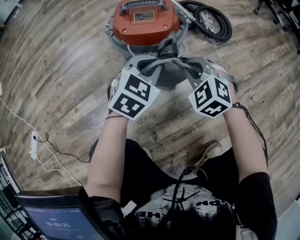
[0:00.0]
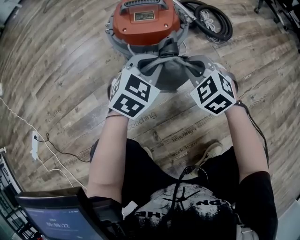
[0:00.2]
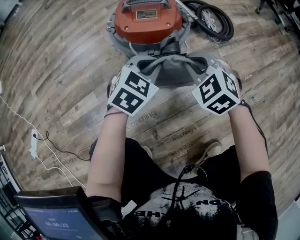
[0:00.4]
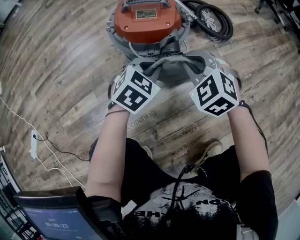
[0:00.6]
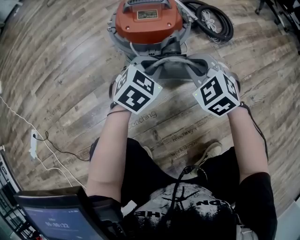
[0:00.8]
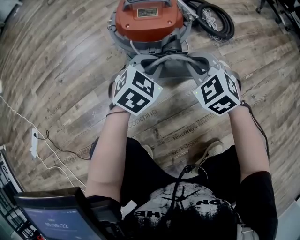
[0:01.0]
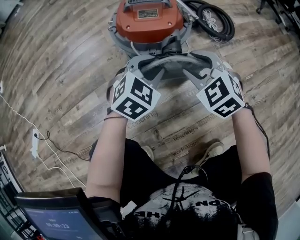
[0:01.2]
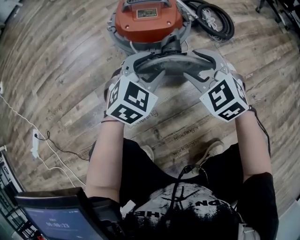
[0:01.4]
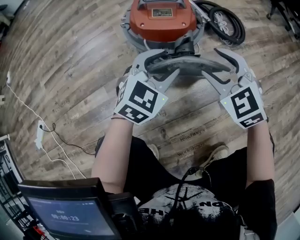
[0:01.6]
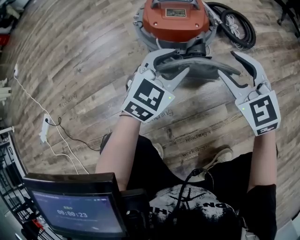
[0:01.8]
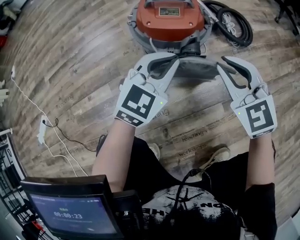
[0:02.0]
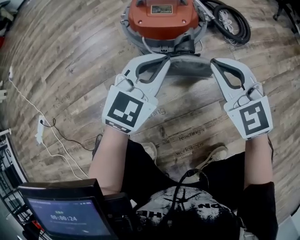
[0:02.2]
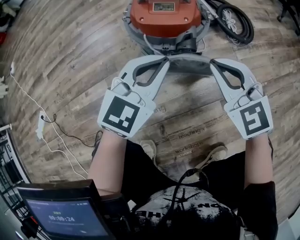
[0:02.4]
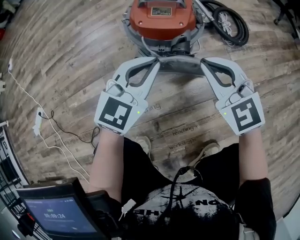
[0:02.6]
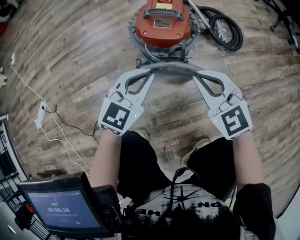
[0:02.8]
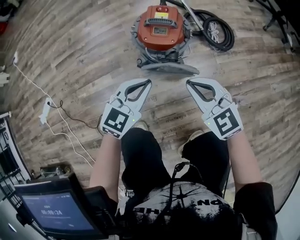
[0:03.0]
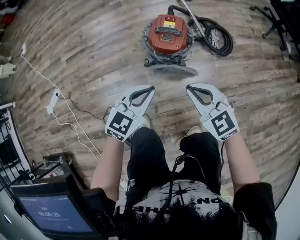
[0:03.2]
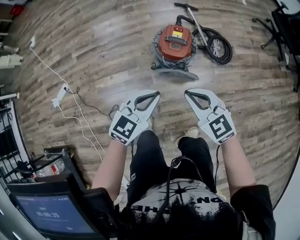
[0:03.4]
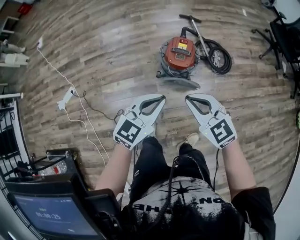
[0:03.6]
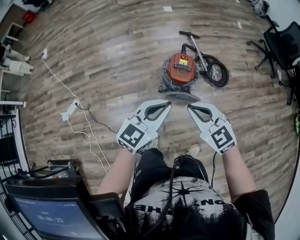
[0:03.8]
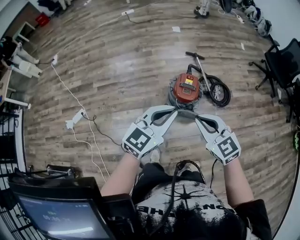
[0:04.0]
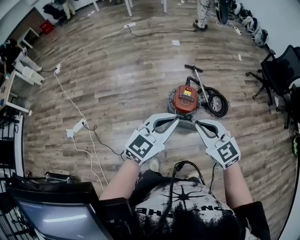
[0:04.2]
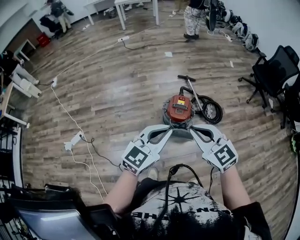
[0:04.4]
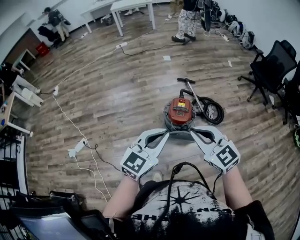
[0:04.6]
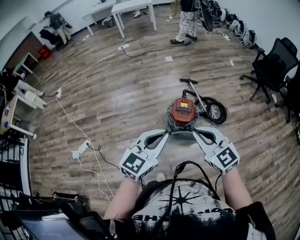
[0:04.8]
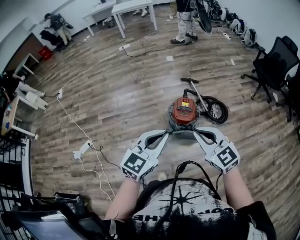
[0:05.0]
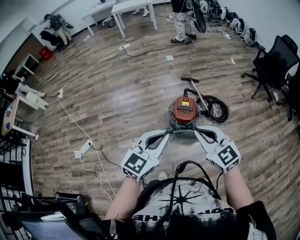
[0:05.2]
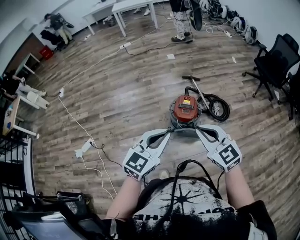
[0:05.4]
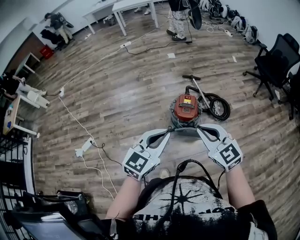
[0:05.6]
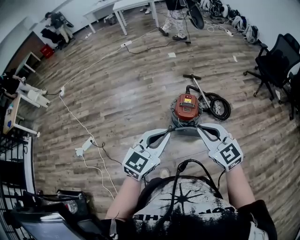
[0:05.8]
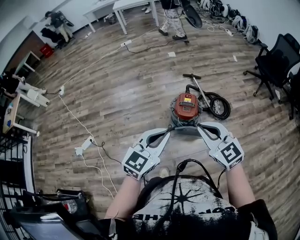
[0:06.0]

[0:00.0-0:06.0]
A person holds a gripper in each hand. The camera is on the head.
0:00.0 to 0:01.6: The right gripper heads upward, covering approximately 5 cm, and opens. Meanwhile the left gripper opens up.
0:01.6 to 0:03.0: Both grippers move upward and backward, roughly 20 cm. The right gripper swivels approximately 20 degrees, and closes its fingers, while the left gripper closes.
0:03.0 to 0:04.4: The grippers both shift upward by about 50 cm.
0:04.4 to 0:06.0: The grippers move only a little.

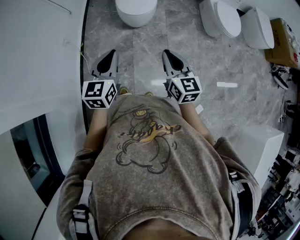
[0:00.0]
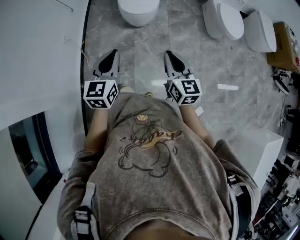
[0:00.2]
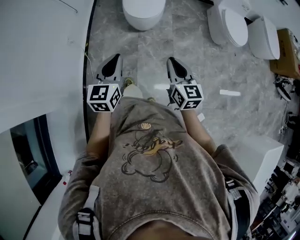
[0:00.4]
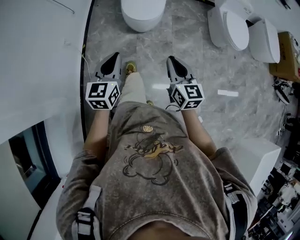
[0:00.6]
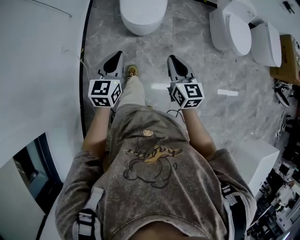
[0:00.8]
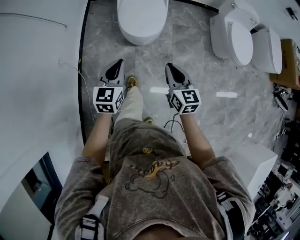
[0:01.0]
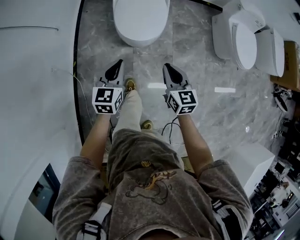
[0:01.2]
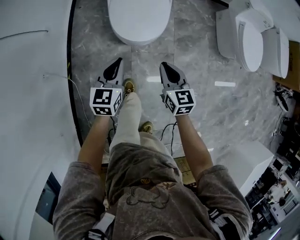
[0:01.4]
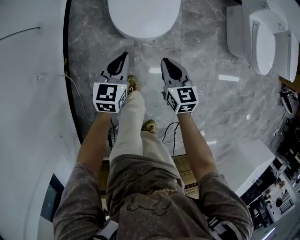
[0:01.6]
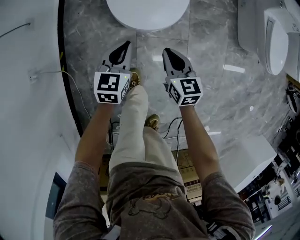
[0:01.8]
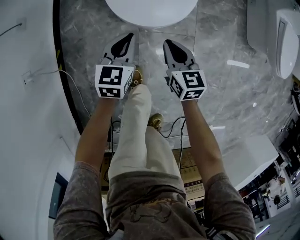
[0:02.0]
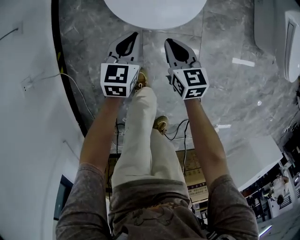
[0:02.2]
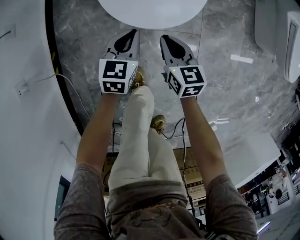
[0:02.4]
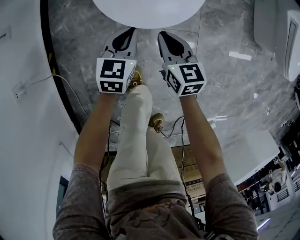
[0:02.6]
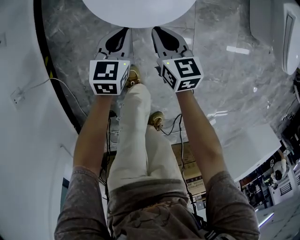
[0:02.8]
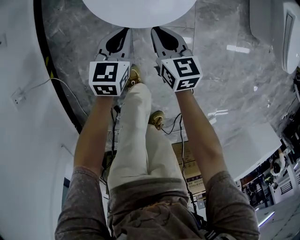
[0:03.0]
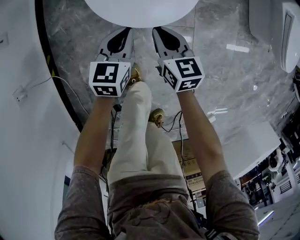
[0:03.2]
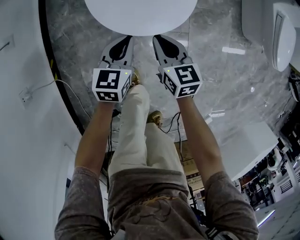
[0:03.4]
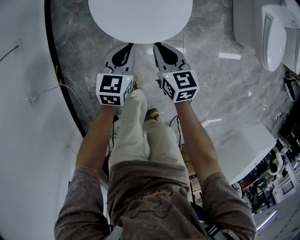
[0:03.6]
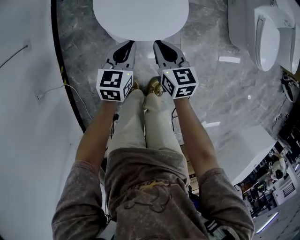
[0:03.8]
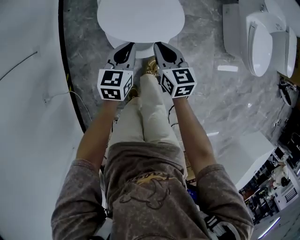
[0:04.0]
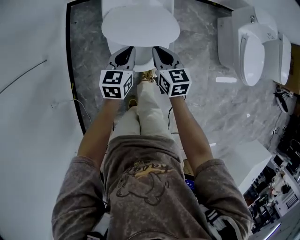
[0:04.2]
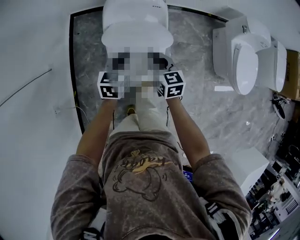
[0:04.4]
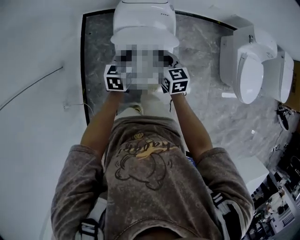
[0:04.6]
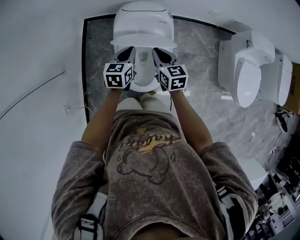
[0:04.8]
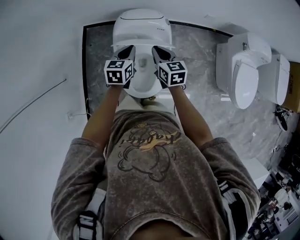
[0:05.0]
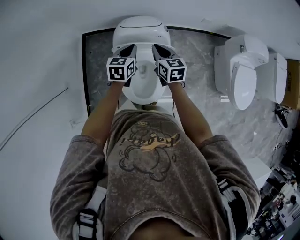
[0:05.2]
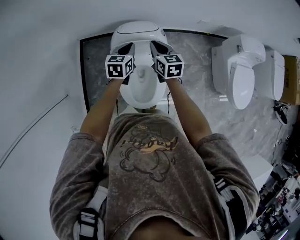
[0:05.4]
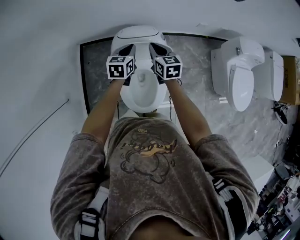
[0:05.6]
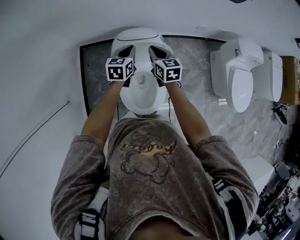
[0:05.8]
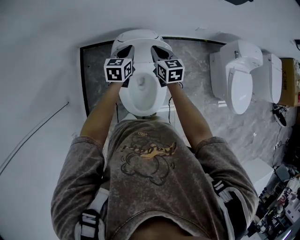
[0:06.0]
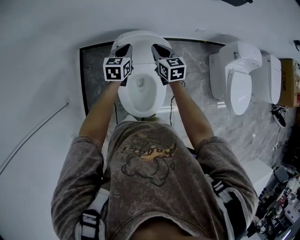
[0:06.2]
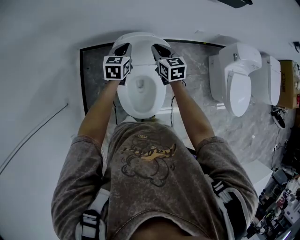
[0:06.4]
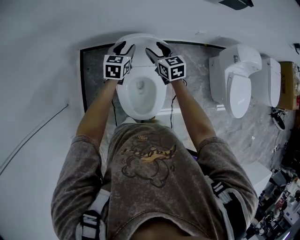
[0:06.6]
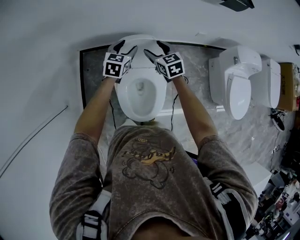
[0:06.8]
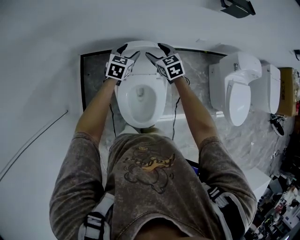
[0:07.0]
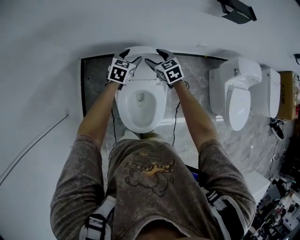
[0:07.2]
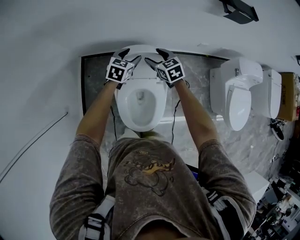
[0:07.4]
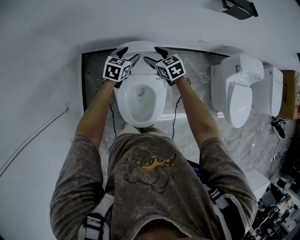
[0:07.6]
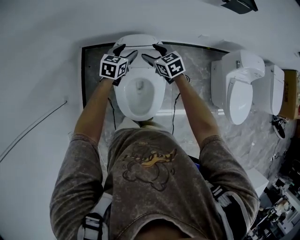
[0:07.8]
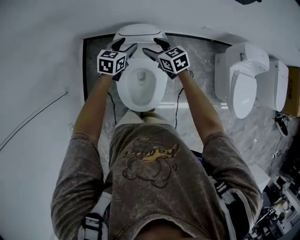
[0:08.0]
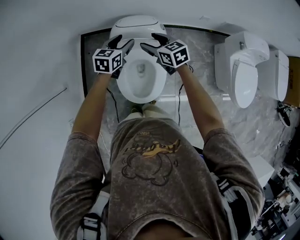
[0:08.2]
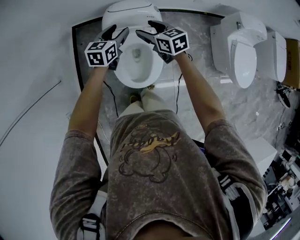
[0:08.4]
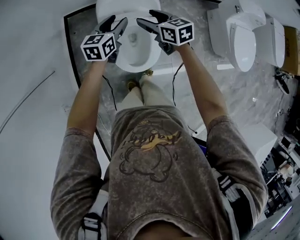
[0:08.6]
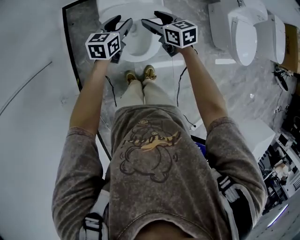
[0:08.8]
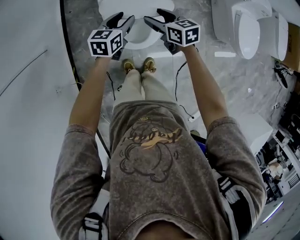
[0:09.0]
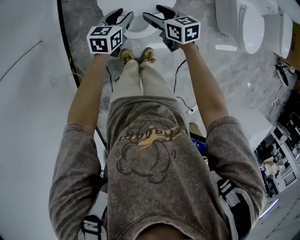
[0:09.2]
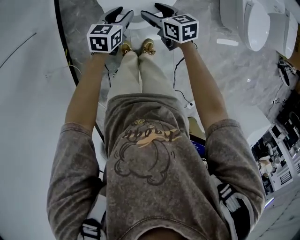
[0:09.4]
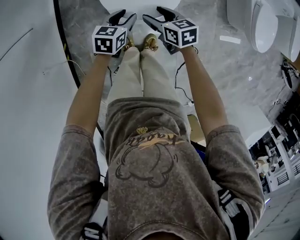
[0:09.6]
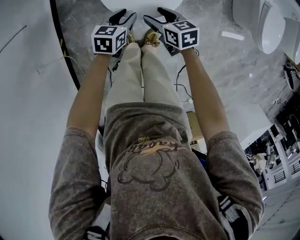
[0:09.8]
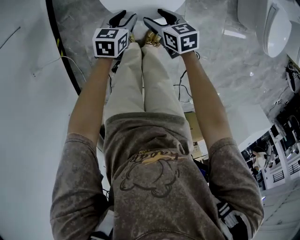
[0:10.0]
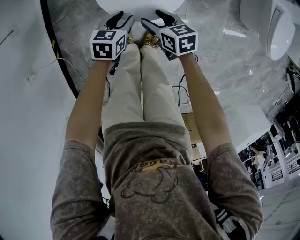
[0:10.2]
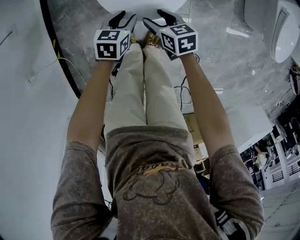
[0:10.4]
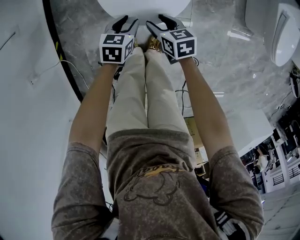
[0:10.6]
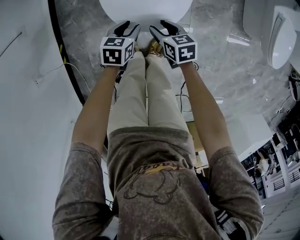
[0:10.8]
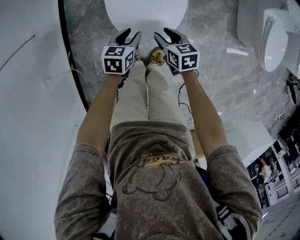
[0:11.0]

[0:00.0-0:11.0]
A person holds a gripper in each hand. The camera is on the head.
0:00.0 to 0:01.6: Both grippers are carried forward, approximately 40 cm. The grippers both shift downward by roughly 35 cm.
0:01.6 to 0:03.2: The right gripper goes about 20 cm downward and forward. Meanwhile the left gripper goes approximately 20 cm downward.
0:03.2 to 0:04.8: The two grippers go approximately 50 cm upward and forward.
0:04.8 to 0:06.2: The grippers both shift forward by roughly 15 cm.
0:06.2 to 0:07.8: The left gripper opens. The right gripper rotates approximately 20 degrees, and opens its fingers.
0:07.8 to 0:09.4: Both grippers travel together backward and downward, roughly 40 cm. The right gripper rotates approximately 20 degrees.
0:09.4 to 0:11.0: The two grippers go some 15 cm downward.

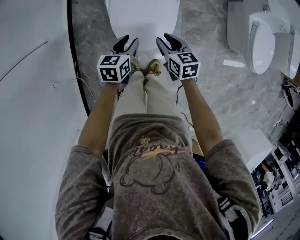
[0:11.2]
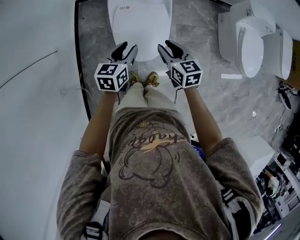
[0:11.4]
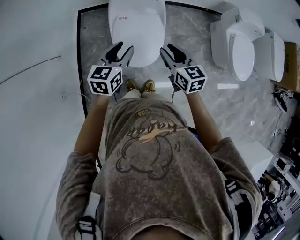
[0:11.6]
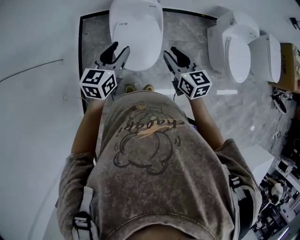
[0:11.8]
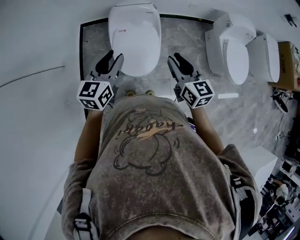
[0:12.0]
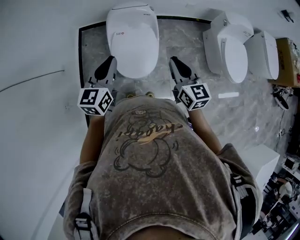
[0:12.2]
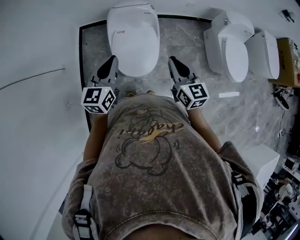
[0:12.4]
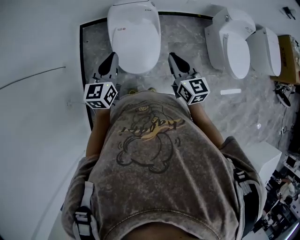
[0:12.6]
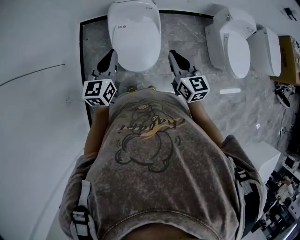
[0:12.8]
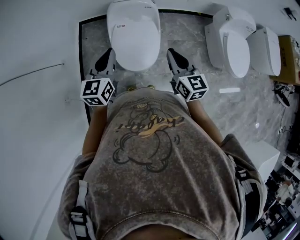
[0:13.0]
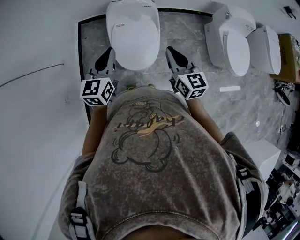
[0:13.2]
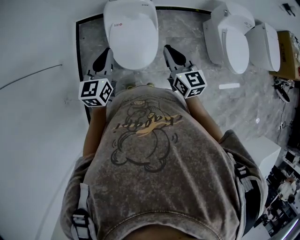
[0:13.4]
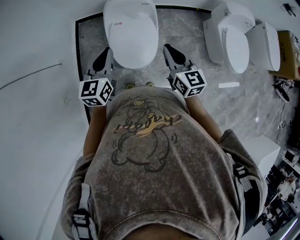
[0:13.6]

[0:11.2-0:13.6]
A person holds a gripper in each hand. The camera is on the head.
0:11.2 to 0:12.4: Both grippers move upward, approximately 30 cm. The left gripper changes its angle by roughly 30 degrees, and closes up, while the right gripper rotates some 30 degrees, and closes its fingers.
0:12.4 to 0:13.6: The grippers move only a little.

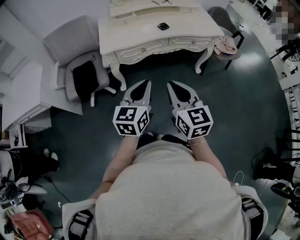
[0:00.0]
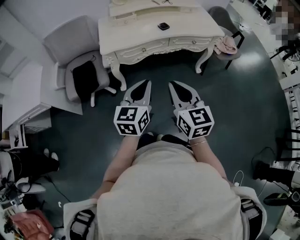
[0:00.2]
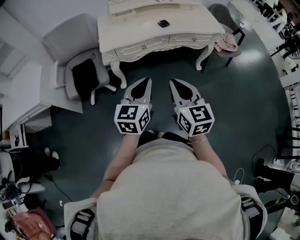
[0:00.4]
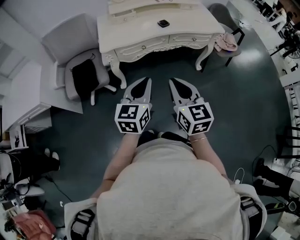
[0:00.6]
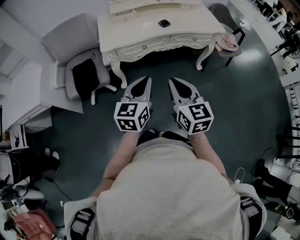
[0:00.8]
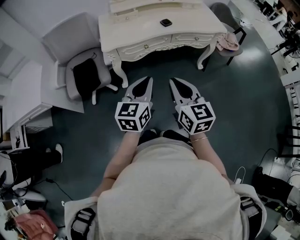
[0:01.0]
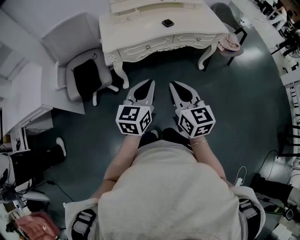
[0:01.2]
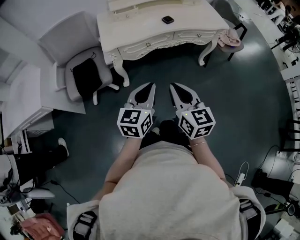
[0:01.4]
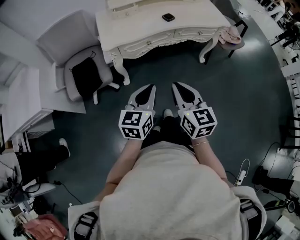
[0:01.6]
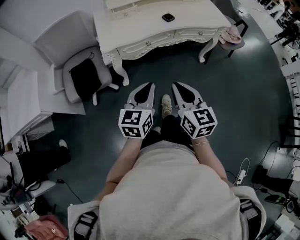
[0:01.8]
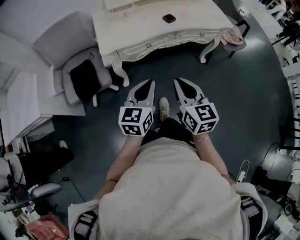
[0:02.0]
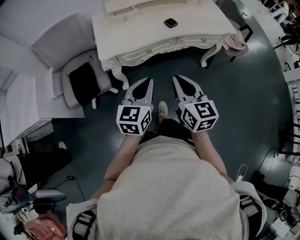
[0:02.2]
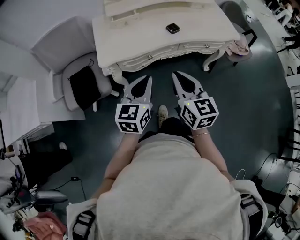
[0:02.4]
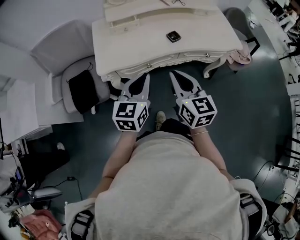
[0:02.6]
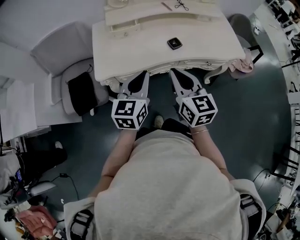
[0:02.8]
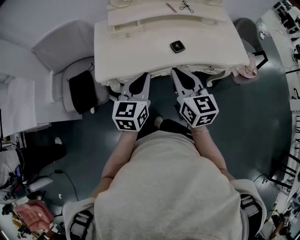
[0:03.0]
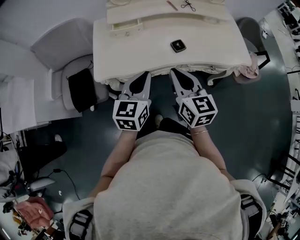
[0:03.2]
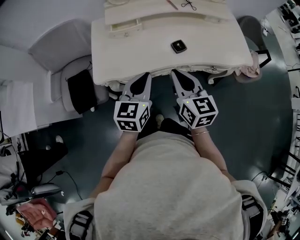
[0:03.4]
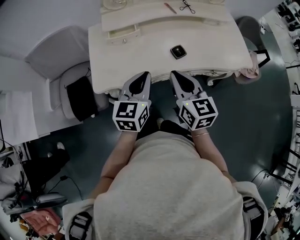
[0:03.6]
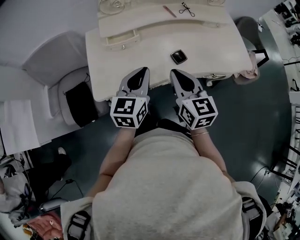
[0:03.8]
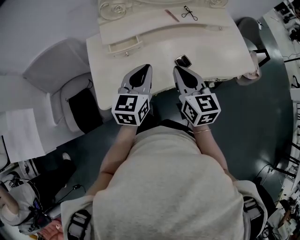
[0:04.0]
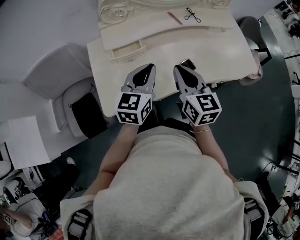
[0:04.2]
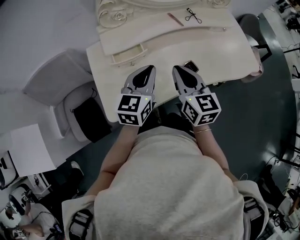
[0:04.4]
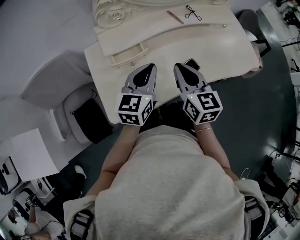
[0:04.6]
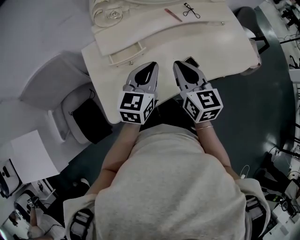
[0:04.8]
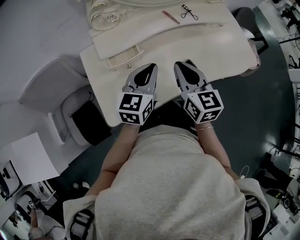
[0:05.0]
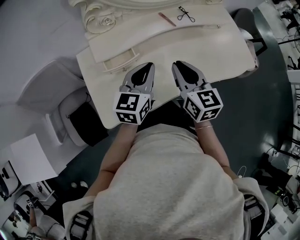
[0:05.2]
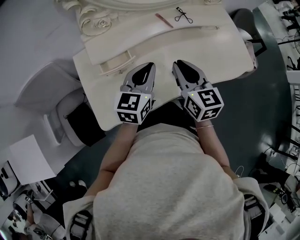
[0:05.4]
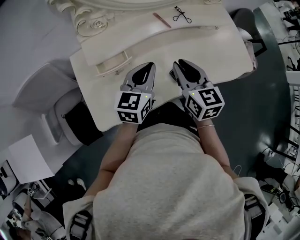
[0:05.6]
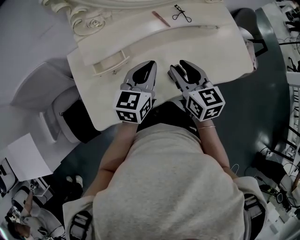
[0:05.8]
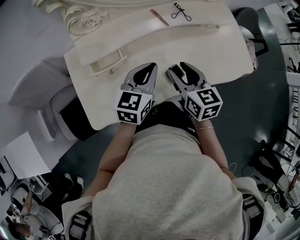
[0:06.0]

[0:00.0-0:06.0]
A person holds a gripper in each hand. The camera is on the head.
0:00.0 to 0:01.6: The right gripper changes place by roughly 5 cm. The left gripper heads downward, covering about 5 cm.
0:01.6 to 0:03.0: Both grippers travel together forward, approximately 30 cm.
0:03.0 to 0:04.4: The two grippers go some 20 cm forward.
0:04.4 to 0:06.0: The right gripper goes some 10 cm to the right, forward and downward, and opens its fingers; the left gripper moves to the right and forward, some 10 cm.
